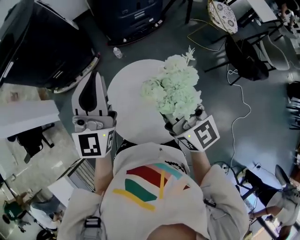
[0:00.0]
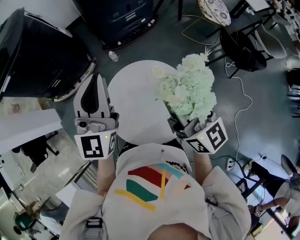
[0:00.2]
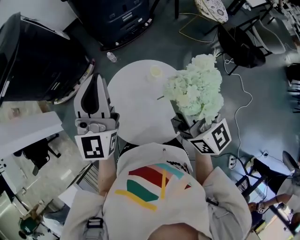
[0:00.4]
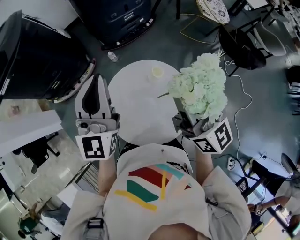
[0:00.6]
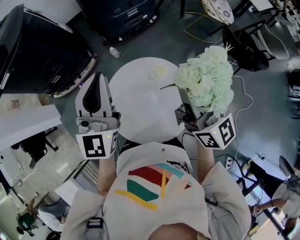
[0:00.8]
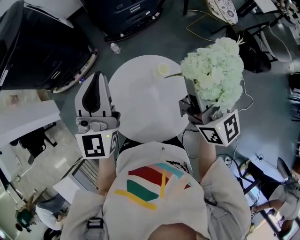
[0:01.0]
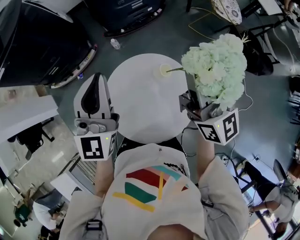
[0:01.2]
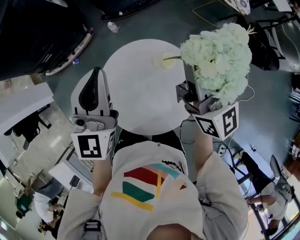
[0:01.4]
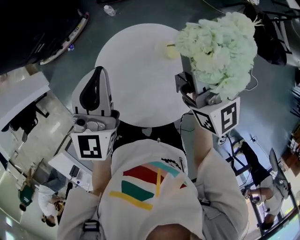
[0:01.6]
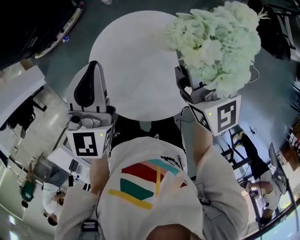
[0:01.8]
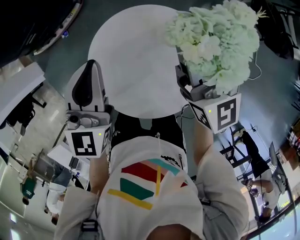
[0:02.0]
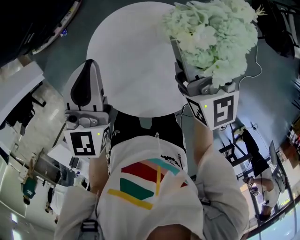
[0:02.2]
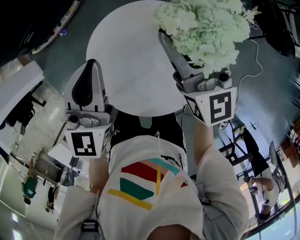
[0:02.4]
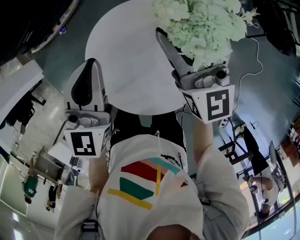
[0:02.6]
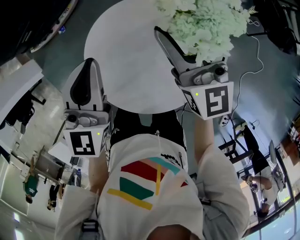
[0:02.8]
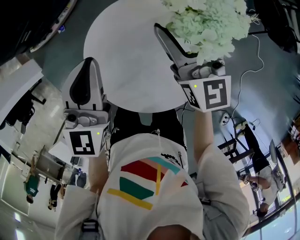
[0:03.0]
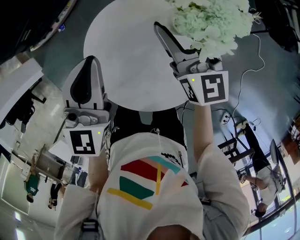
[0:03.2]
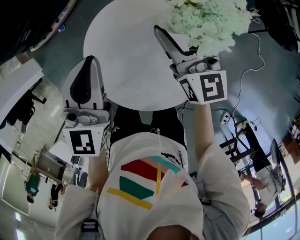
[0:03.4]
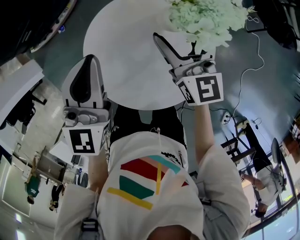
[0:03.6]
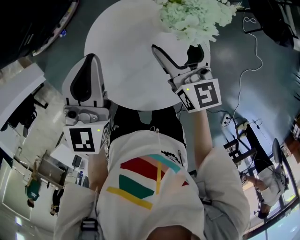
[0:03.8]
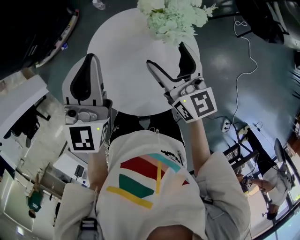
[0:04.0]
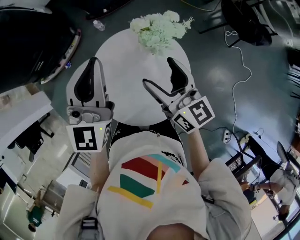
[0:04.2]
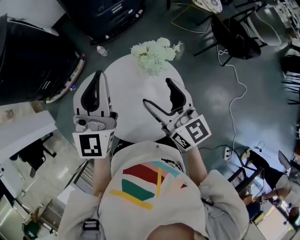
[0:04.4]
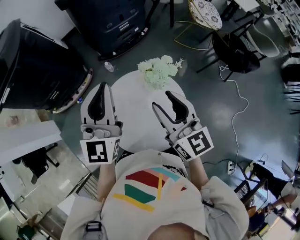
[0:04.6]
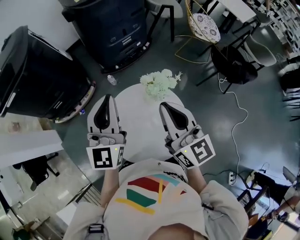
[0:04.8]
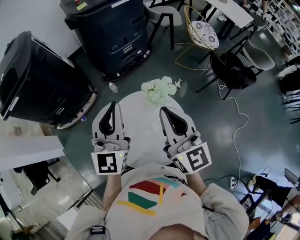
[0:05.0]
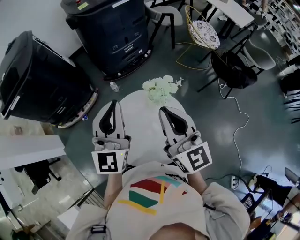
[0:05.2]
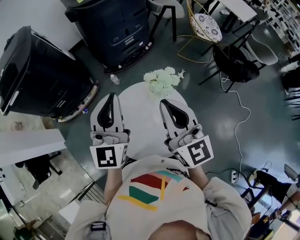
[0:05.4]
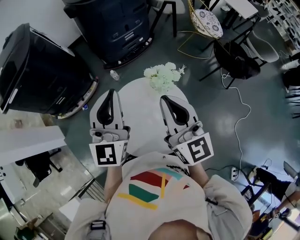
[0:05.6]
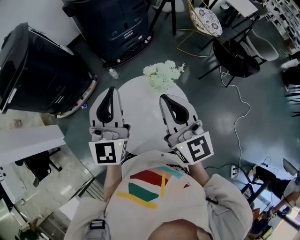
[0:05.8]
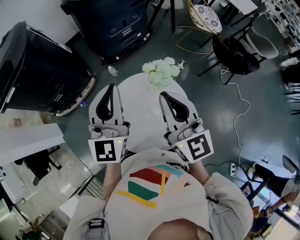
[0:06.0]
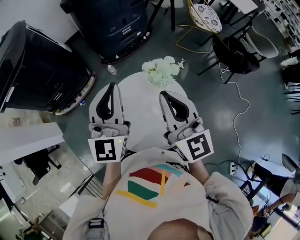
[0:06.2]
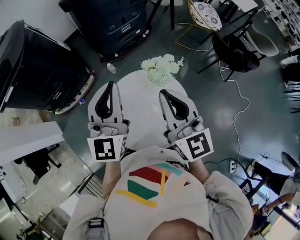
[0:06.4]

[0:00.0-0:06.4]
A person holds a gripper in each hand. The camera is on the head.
0.0 to 1.6 s: The left gripper moves downward, approximately 15 cm, and rotates about 20 degrees, while the right gripper shifts approximately 15 cm forward, to the right and downward.
1.6 to 3.2 s: The right gripper travels downward by roughly 15 cm, changes its angle by approximately 20 degrees, and opens up, while the left gripper heads downward, covering some 5 cm.
3.2 to 4.8 s: The right gripper moves upward and backward, roughly 25 cm, and closes up. Meanwhile the left gripper goes approximately 20 cm upward, and rotates approximately 20 degrees.
4.8 to 6.4 s: The grippers stay close to where they were, moving slightly.

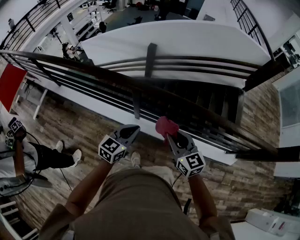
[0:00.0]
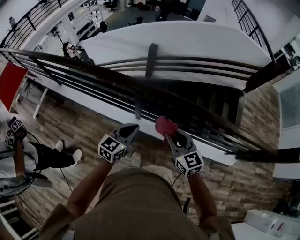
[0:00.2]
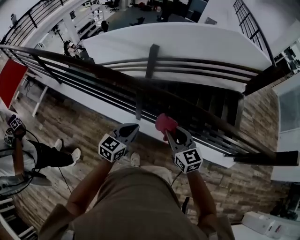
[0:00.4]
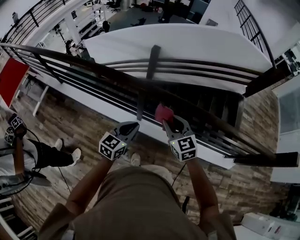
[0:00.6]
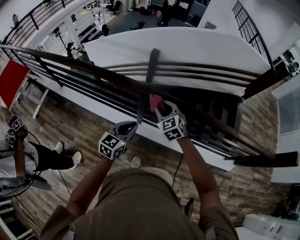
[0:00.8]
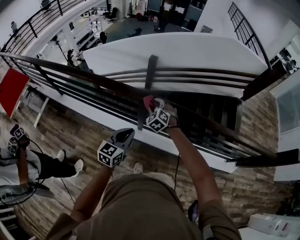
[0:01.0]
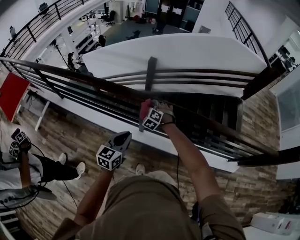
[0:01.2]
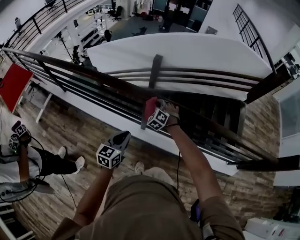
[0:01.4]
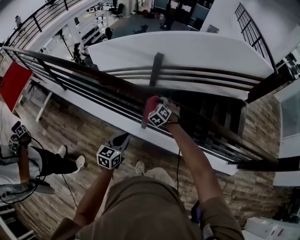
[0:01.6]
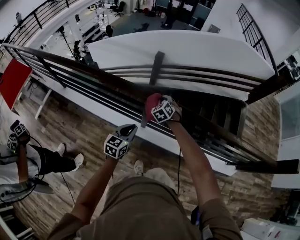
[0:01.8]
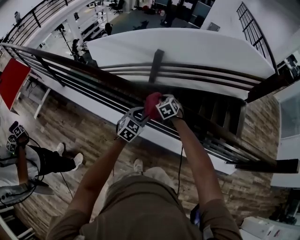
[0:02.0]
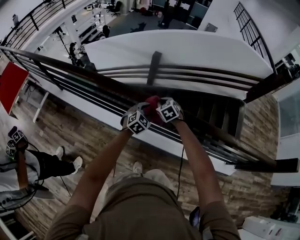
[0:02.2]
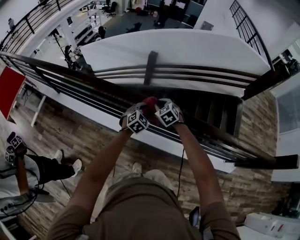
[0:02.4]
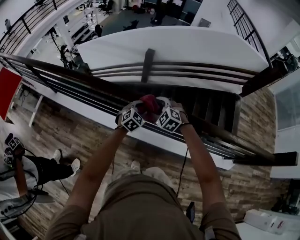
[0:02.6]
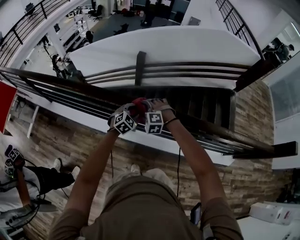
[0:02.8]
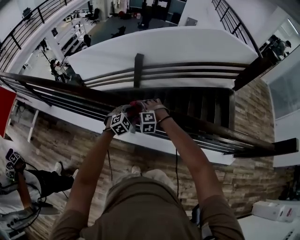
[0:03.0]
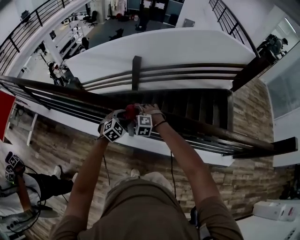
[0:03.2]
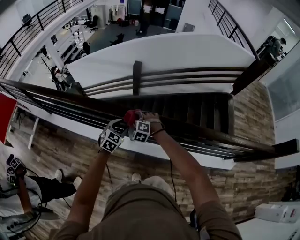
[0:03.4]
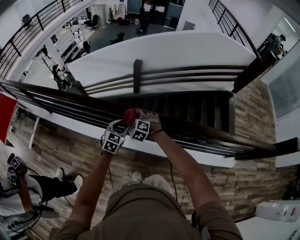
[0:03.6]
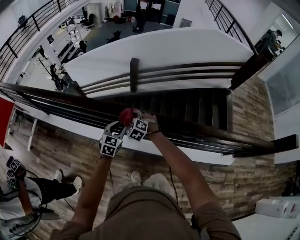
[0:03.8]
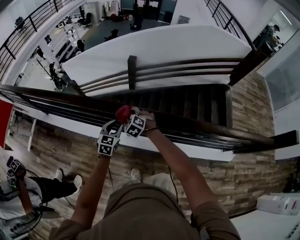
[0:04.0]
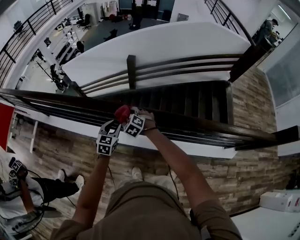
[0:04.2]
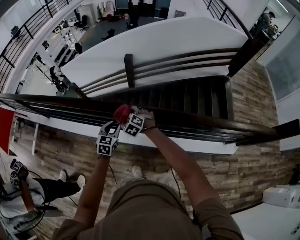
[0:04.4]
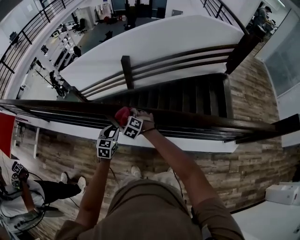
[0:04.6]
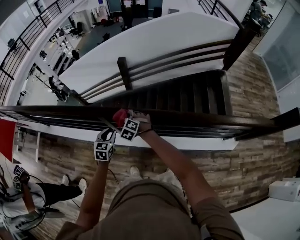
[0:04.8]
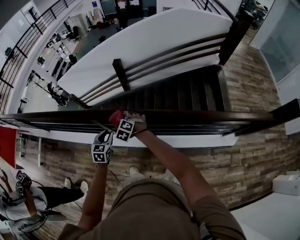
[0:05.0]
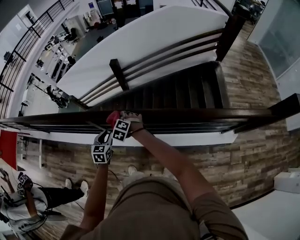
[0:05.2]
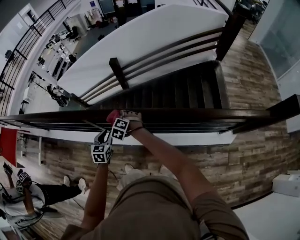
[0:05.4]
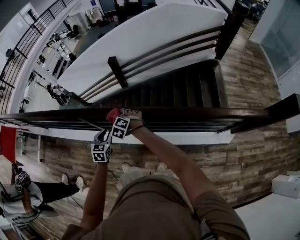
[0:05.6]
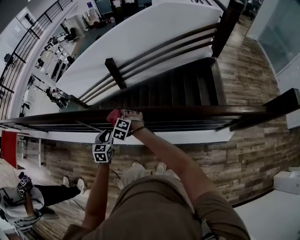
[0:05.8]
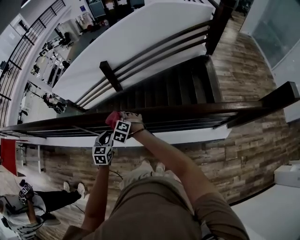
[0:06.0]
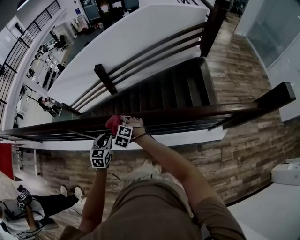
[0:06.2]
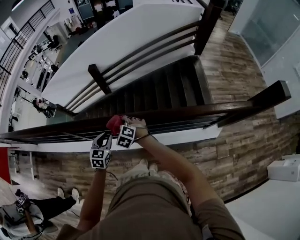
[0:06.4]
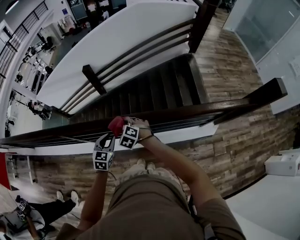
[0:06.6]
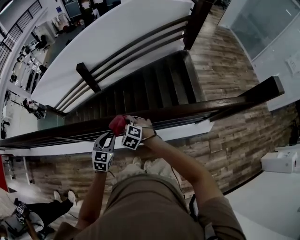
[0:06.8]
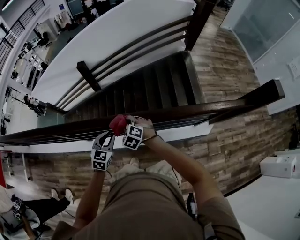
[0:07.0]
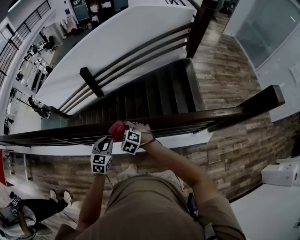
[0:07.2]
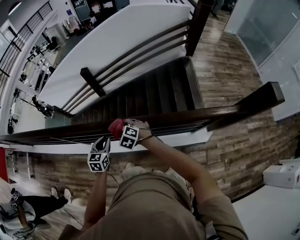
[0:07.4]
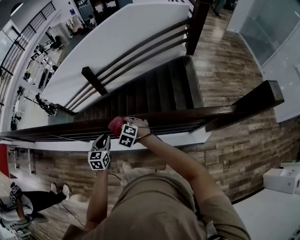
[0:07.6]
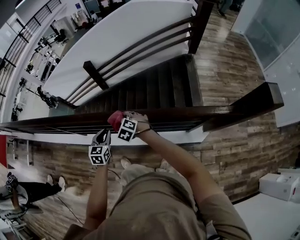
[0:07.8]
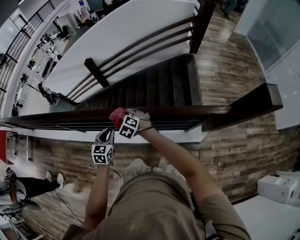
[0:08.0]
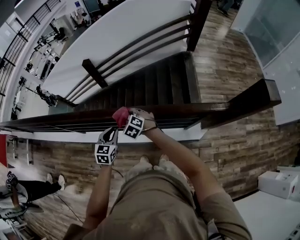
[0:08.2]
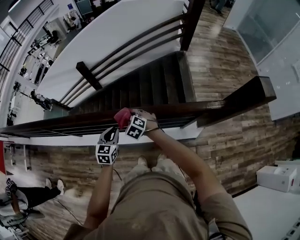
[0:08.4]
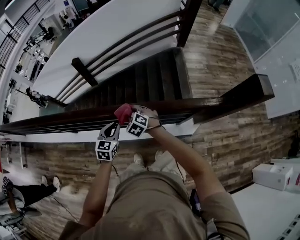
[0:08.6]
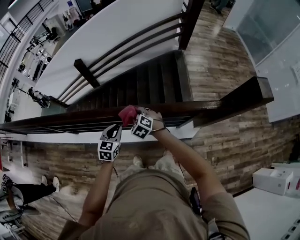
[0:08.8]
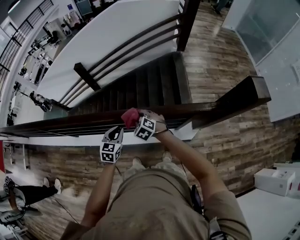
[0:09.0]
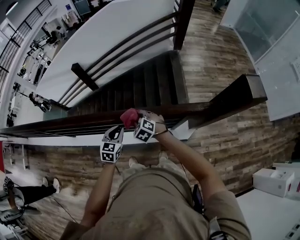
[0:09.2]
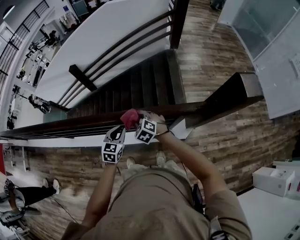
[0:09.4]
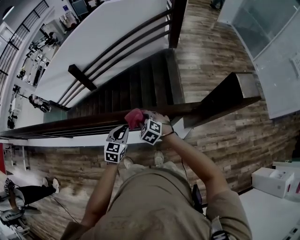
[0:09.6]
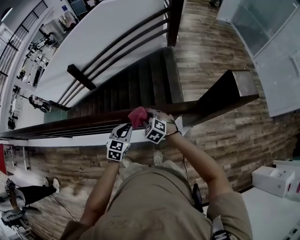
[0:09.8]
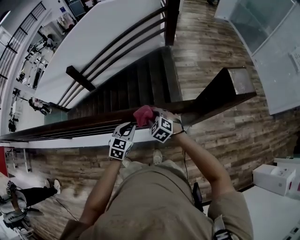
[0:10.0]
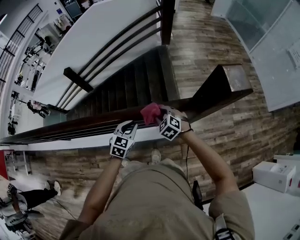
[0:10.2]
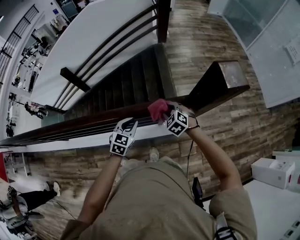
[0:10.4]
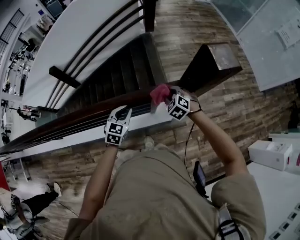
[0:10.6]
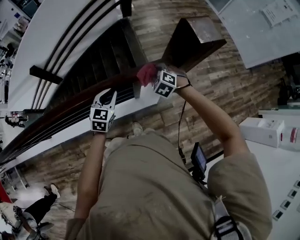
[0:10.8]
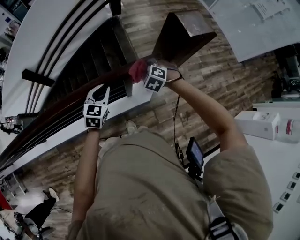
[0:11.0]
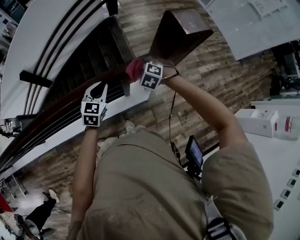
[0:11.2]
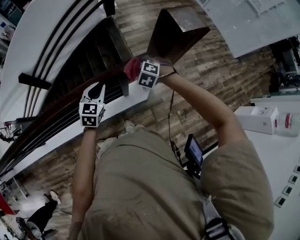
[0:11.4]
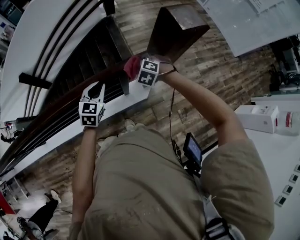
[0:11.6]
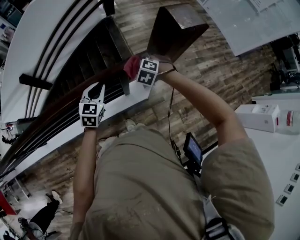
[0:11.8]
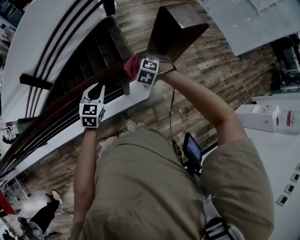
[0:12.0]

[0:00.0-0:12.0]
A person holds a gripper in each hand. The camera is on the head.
0.0 to 1.6 s: The right gripper shifts about 35 cm forward, to the left and downward, and turns by roughly 50 degrees. The left gripper heads to the left and downward, covering approximately 15 cm.
1.6 to 3.0 s: The left gripper moves forward and to the right, roughly 25 cm, rotates around the line of its fingers by some 50 degrees, clockwise from behind, and opens its fingers, while the right gripper swivels some 40 degrees, and opens its fingers.
3.0 to 4.4 s: The right gripper heads to the right, covering about 10 cm, and changes its angle by roughly 40 degrees, while the left gripper heads backward, covering approximately 5 cm, and rotates roughly 40 degrees.
4.4 to 6.0 s: The grippers both shift to the right by about 35 cm.
6.0 to 7.6 s: The two grippers go approximately 35 cm to the right.
7.6 to 9.0 s: The two grippers go roughly 25 cm to the right.
9.0 to 10.4 s: The two grippers go approximately 35 cm to the right.
10.4 to 12.0 s: The left gripper goes about 5 cm to the right, while the right gripper heads to the right, covering approximately 10 cm.

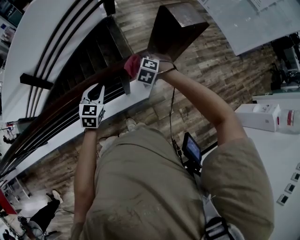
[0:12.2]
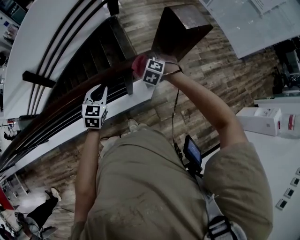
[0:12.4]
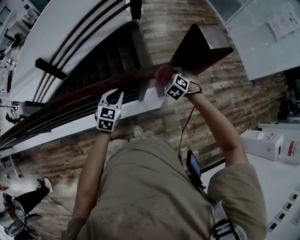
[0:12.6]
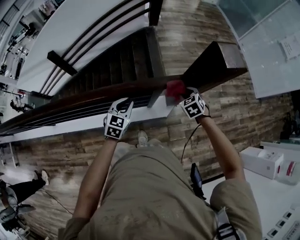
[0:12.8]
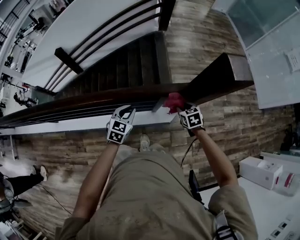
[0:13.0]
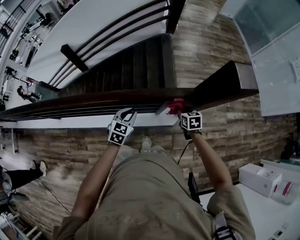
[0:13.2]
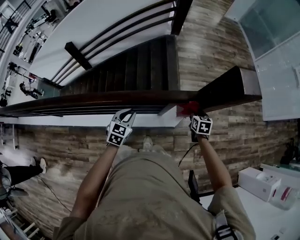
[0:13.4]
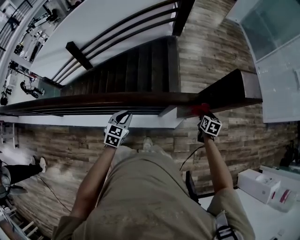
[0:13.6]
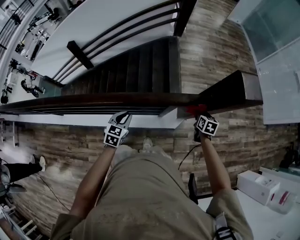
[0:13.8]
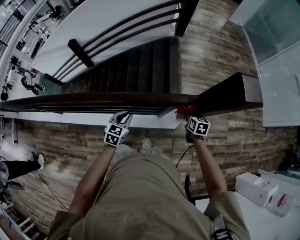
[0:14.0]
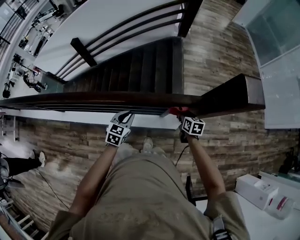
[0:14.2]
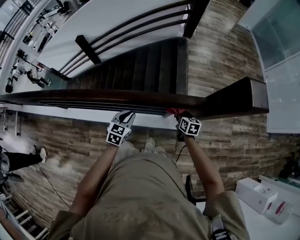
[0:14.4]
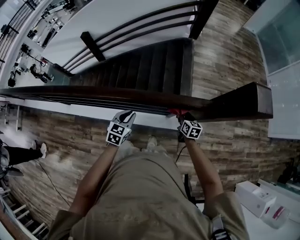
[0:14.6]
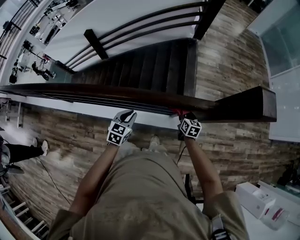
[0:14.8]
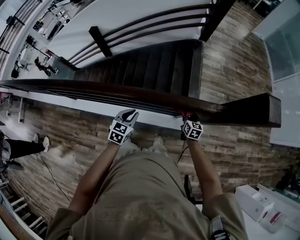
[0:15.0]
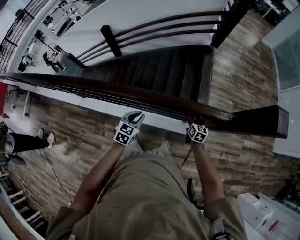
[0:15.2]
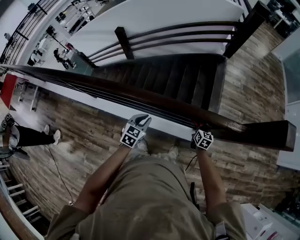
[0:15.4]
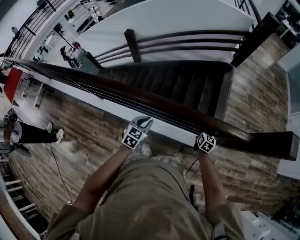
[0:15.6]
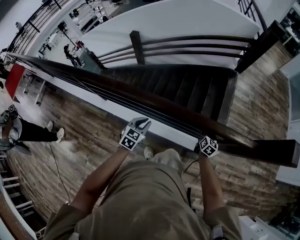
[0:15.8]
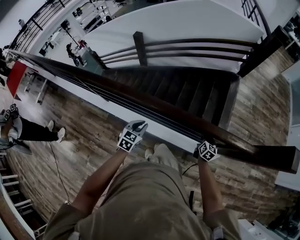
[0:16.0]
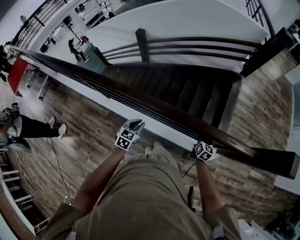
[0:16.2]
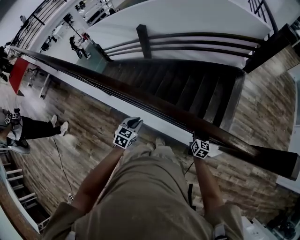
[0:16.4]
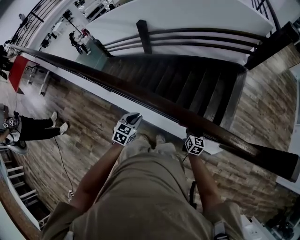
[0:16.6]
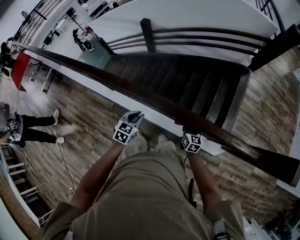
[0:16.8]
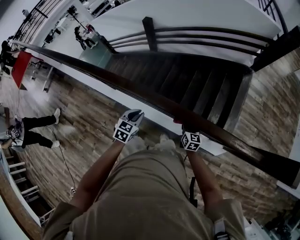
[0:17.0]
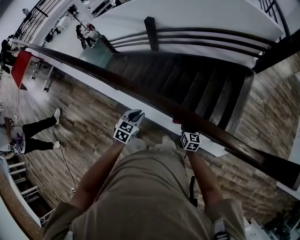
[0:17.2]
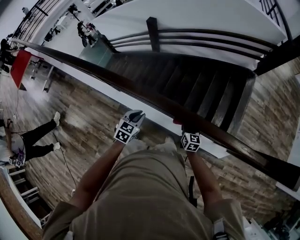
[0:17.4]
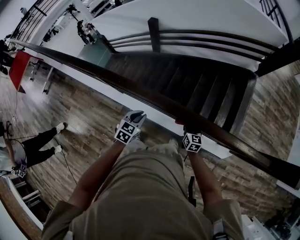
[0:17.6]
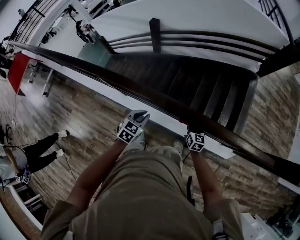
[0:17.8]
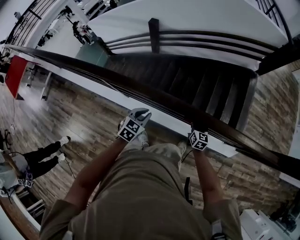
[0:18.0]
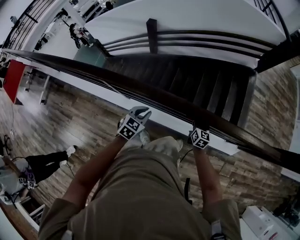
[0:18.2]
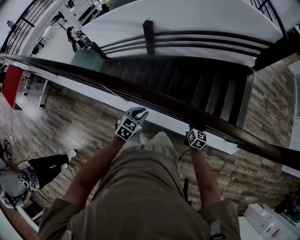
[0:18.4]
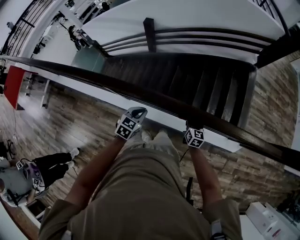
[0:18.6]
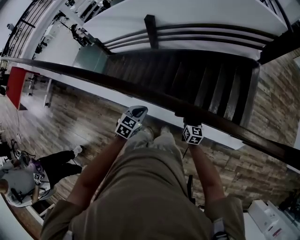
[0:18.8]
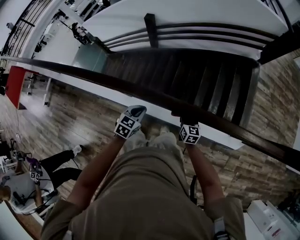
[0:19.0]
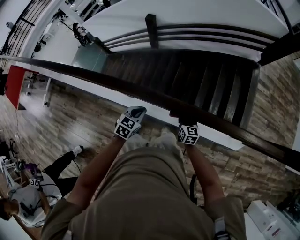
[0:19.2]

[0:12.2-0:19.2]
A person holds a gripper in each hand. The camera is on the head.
12.2 to 13.6 s: The right gripper is displaced to the right by roughly 10 cm, and rotates around the line of its fingers by some 70 degrees, clockwise from behind. Meanwhile the left gripper shifts some 15 cm to the left and backward.
13.6 to 15.0 s: The right gripper travels to the left by some 25 cm, and swivels some 20 degrees. Meanwhile the left gripper travels to the left by approximately 10 cm.
15.0 to 16.4 s: Both grippers travel together to the left, about 35 cm.
16.4 to 17.8 s: The grippers both shift to the left by approximately 30 cm.
17.8 to 19.2 s: Both grippers move to the left, approximately 15 cm.
